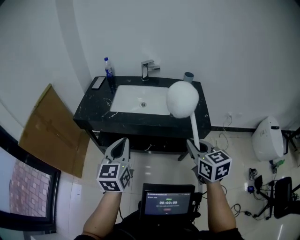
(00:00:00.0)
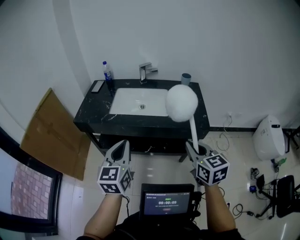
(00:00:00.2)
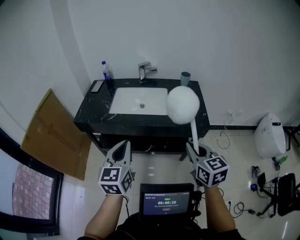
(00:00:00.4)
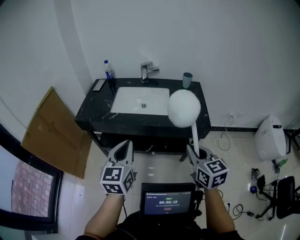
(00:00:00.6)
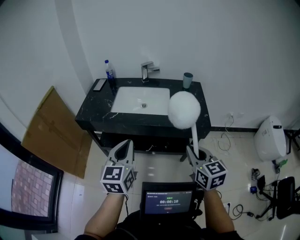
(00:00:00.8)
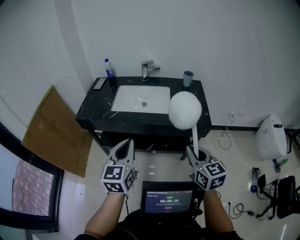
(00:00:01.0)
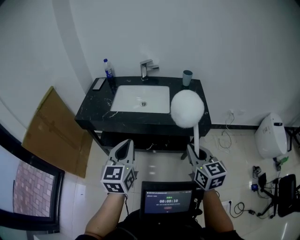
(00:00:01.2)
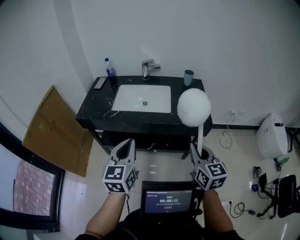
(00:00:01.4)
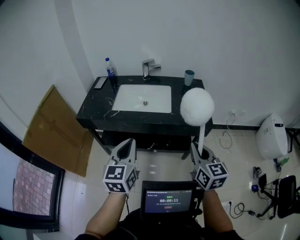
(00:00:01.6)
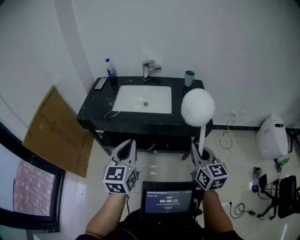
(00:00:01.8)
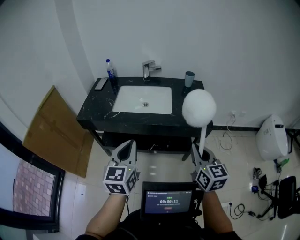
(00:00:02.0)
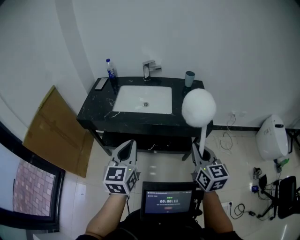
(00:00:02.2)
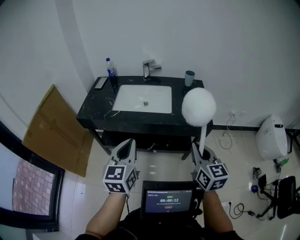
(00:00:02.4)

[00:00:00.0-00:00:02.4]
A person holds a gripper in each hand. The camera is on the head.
00:00:00.0 to 00:00:02.4: The grippers stay close to where they were, moving slightly.

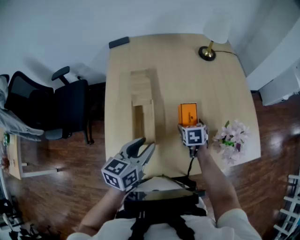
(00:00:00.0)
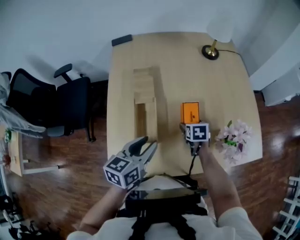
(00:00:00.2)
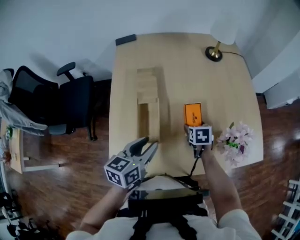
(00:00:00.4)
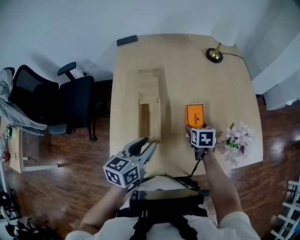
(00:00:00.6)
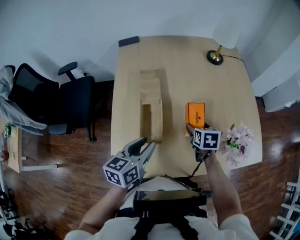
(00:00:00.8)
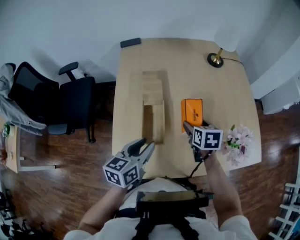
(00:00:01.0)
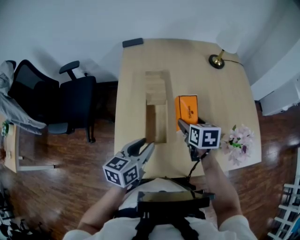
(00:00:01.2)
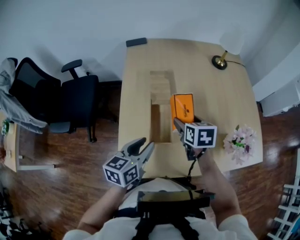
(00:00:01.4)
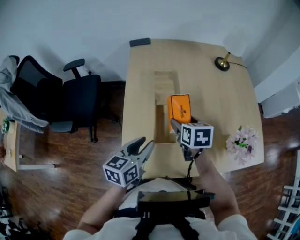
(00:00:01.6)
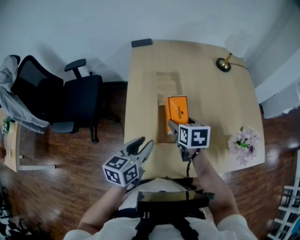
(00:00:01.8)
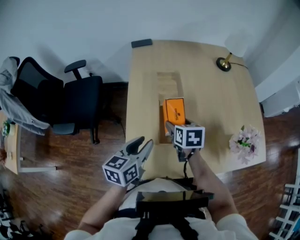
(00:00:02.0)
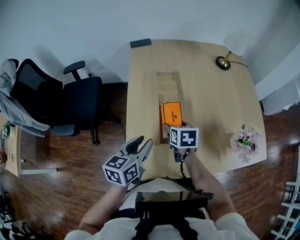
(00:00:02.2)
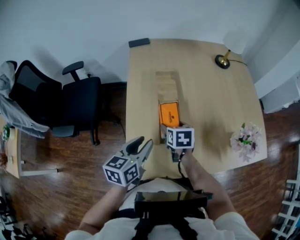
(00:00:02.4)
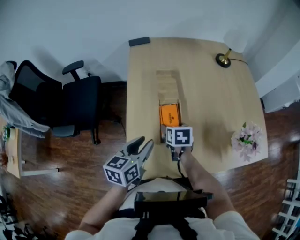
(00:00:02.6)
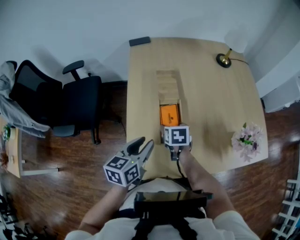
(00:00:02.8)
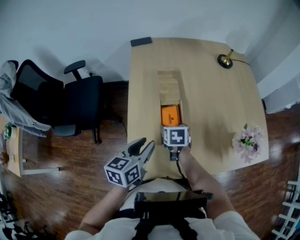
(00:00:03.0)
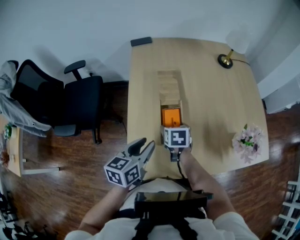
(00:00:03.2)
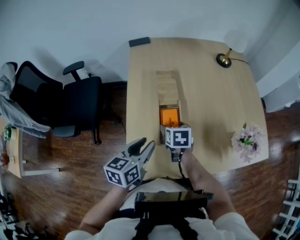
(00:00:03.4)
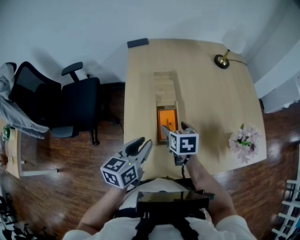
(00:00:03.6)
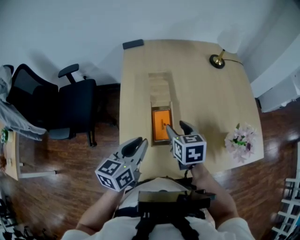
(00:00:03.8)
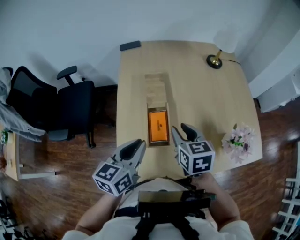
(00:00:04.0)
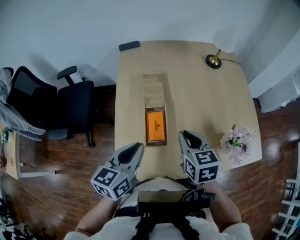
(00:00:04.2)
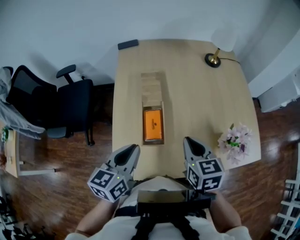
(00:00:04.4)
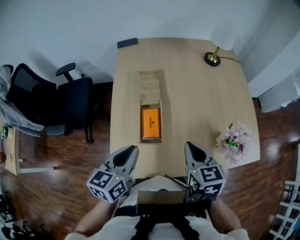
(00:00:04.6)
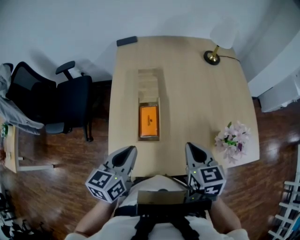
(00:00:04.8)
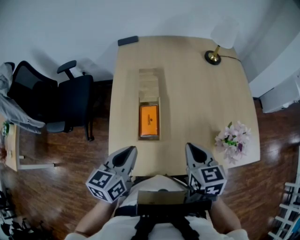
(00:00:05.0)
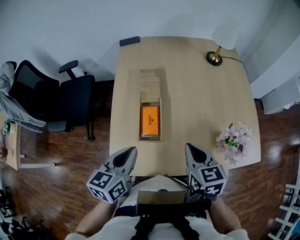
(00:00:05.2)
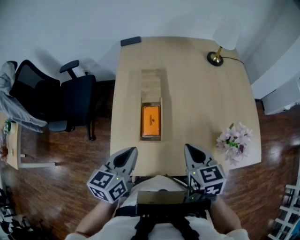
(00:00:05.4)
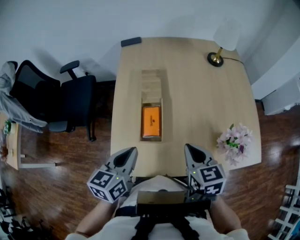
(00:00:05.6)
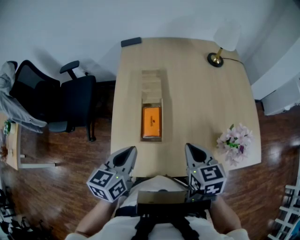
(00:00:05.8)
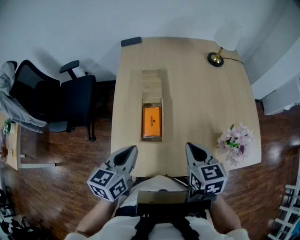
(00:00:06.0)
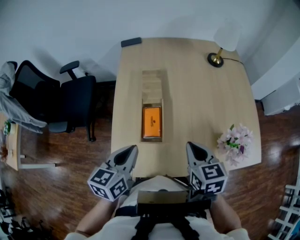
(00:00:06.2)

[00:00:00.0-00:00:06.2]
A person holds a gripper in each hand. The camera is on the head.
00:00:00.0 to 00:00:01.6: The right gripper is displaced to the left and upward by approximately 20 cm, and changes its angle by approximately 20 degrees; the left gripper moves to the left, about 10 cm.
00:00:01.6 to 00:00:03.2: The right gripper shifts approximately 10 cm downward and to the left.
00:00:03.2 to 00:00:04.6: The left gripper is displaced upward and to the right by approximately 10 cm, and closes its fingers; the right gripper shifts approximately 25 cm upward, to the right and backward, rotates approximately 30 degrees, and closes.
00:00:04.6 to 00:00:06.2: The grippers stay close to where they were, moving slightly.

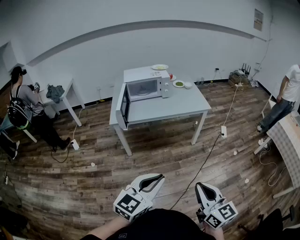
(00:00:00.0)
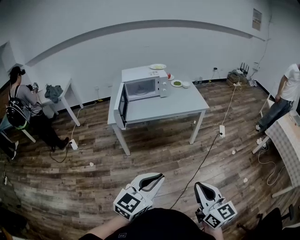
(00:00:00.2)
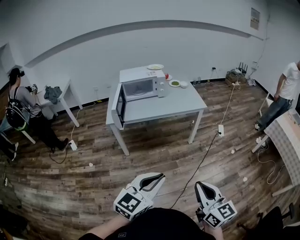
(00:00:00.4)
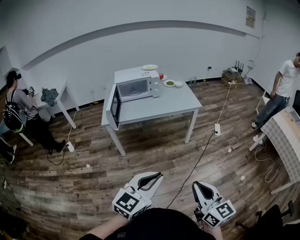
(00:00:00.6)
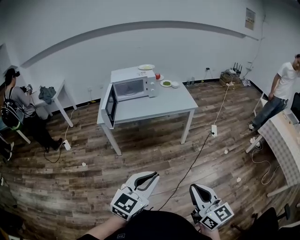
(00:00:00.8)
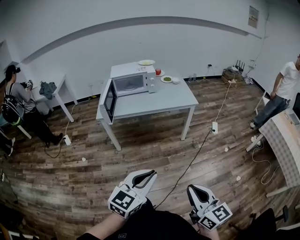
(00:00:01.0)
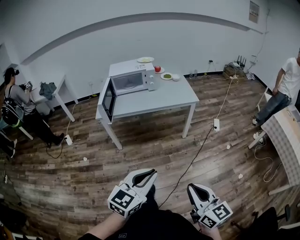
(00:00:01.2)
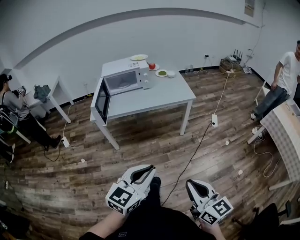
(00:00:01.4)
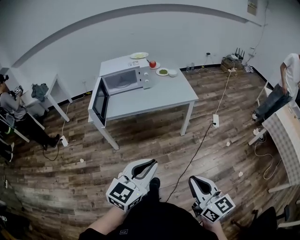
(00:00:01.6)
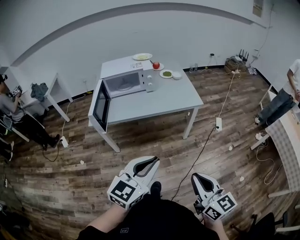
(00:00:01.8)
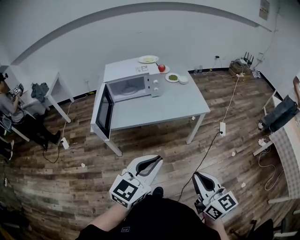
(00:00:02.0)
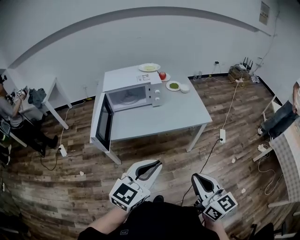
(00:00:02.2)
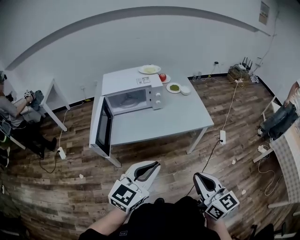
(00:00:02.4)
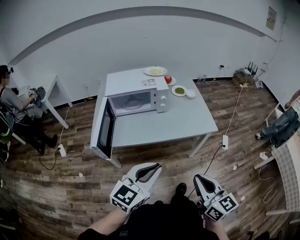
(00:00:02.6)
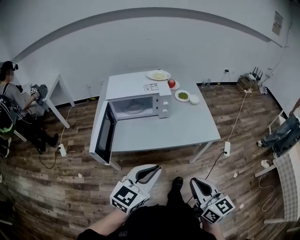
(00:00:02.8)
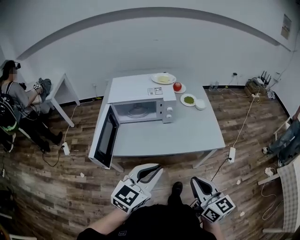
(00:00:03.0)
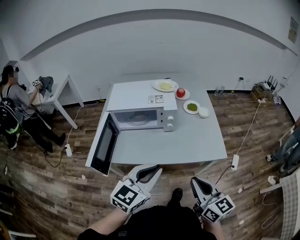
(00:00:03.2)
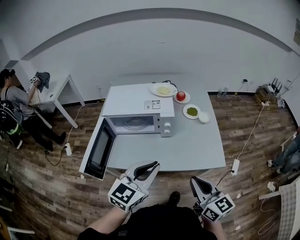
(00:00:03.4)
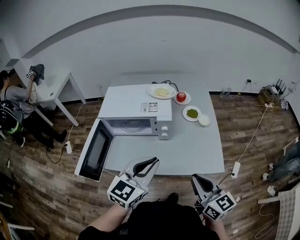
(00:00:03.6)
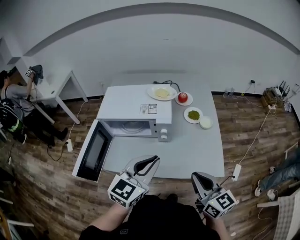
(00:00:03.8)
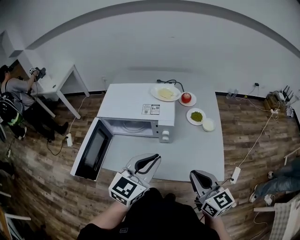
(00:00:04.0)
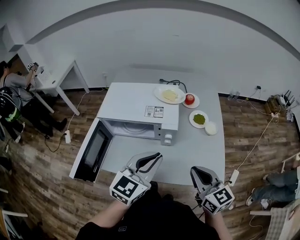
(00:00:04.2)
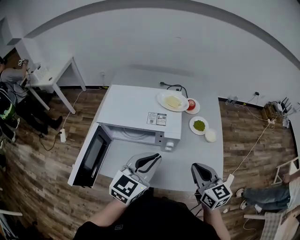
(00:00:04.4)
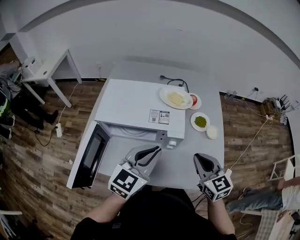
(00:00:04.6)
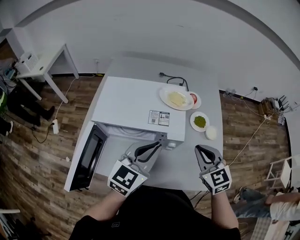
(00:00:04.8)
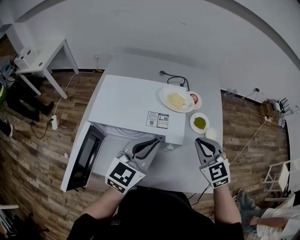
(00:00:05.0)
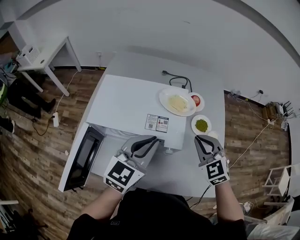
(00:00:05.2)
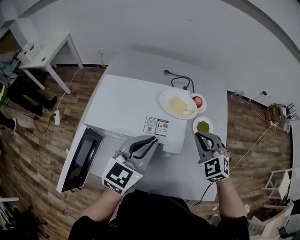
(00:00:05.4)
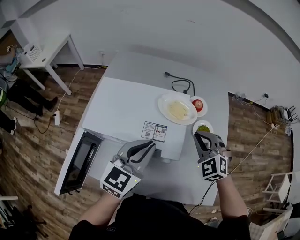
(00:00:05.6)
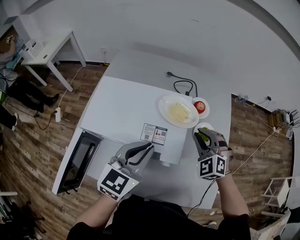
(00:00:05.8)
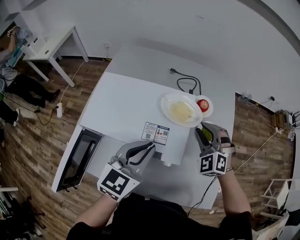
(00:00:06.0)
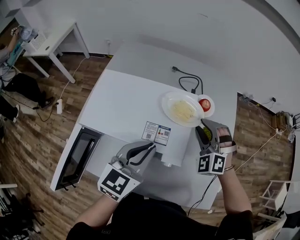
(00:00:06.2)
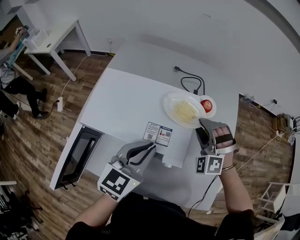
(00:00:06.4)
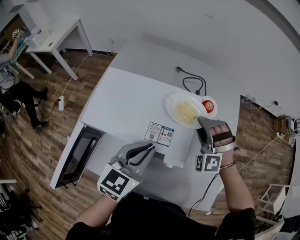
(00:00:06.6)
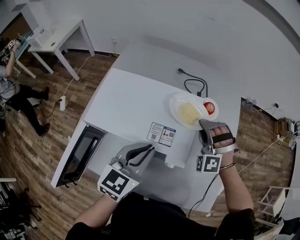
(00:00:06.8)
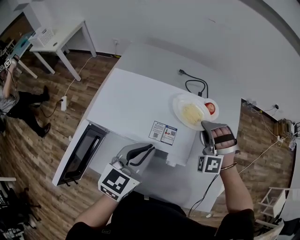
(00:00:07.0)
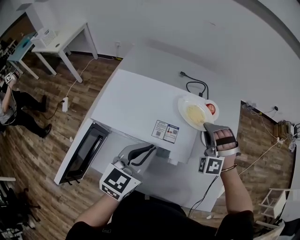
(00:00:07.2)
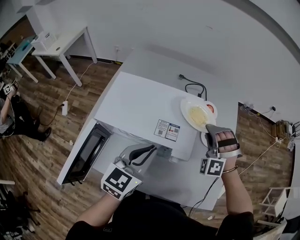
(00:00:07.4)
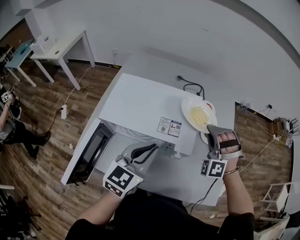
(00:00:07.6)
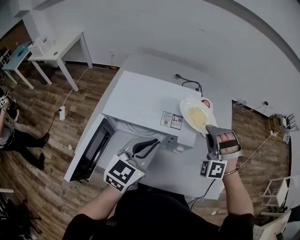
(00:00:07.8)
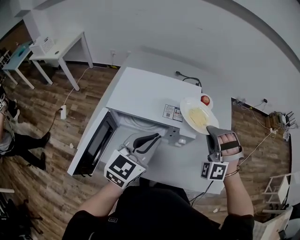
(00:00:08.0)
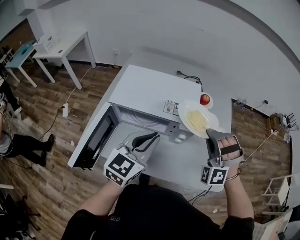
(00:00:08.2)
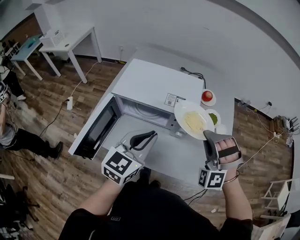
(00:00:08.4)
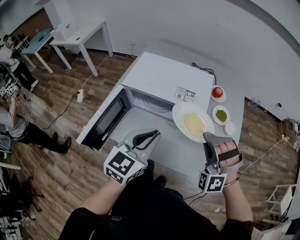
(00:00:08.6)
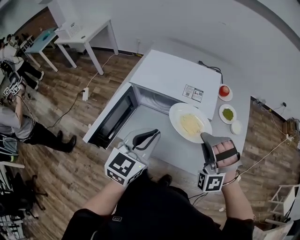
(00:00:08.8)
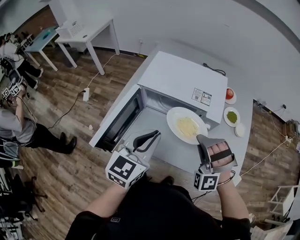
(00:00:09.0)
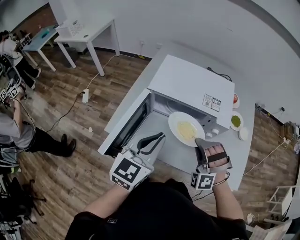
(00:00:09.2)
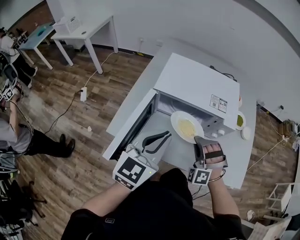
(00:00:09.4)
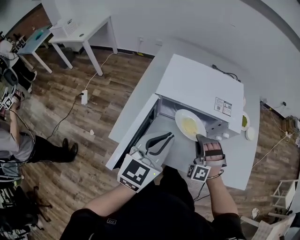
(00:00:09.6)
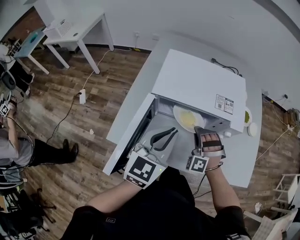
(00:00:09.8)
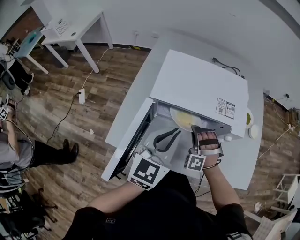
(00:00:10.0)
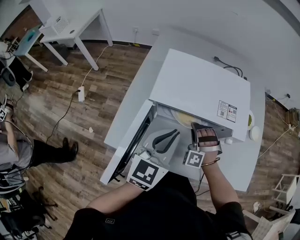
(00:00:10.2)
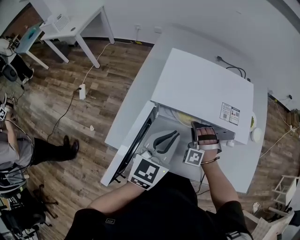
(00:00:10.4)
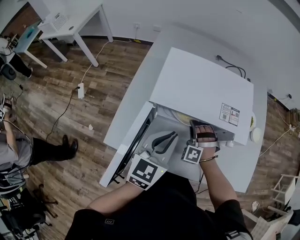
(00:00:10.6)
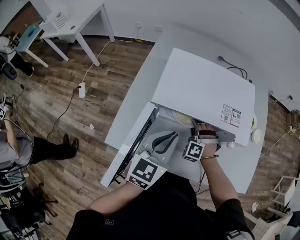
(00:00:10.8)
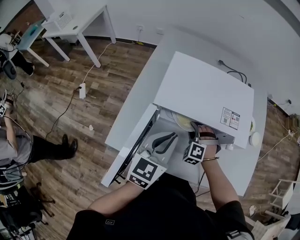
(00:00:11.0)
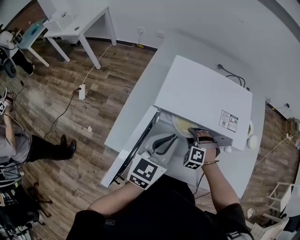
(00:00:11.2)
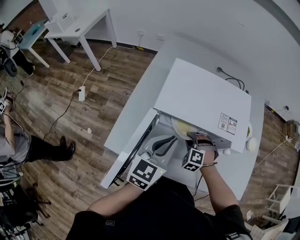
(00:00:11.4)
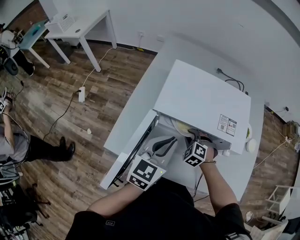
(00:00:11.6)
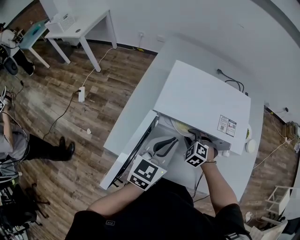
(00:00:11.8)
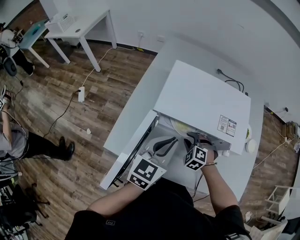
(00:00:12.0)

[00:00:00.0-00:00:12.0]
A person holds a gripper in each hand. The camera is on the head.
00:00:00.0 to 00:00:01.6: The two grippers go roughly 15 cm forward and to the right.
00:00:01.6 to 00:00:03.0: The two grippers go roughly 35 cm forward.
00:00:03.0 to 00:00:04.4: Both grippers move forward, roughly 30 cm.
00:00:04.4 to 00:00:06.0: The left gripper moves forward, approximately 15 cm. Meanwhile the right gripper goes approximately 30 cm forward, twists some 70 degrees counterclockwise, seen from behind, and opens its fingers.
00:00:06.0 to 00:00:07.6: The right gripper travels backward and upward by some 5 cm, and swivels some 30 degrees; the left gripper goes some 5 cm backward.
00:00:07.6 to 00:00:09.0: The right gripper travels backward and to the left by some 25 cm, while the left gripper goes roughly 15 cm backward and to the left.
00:00:09.0 to 00:00:10.4: The left gripper goes roughly 15 cm forward, downward and to the left; the right gripper travels downward, forward and to the left by approximately 30 cm.
00:00:10.4 to 00:00:12.0: The right gripper swivels roughly 40 degrees.

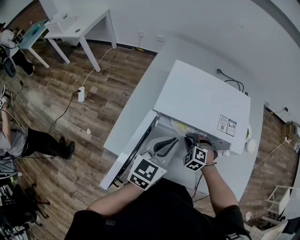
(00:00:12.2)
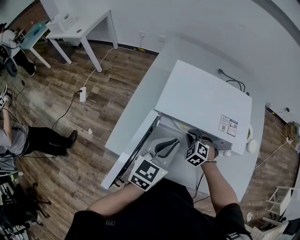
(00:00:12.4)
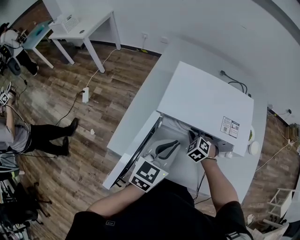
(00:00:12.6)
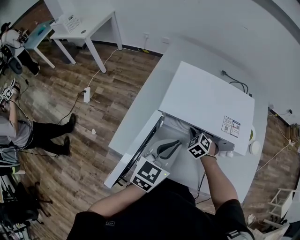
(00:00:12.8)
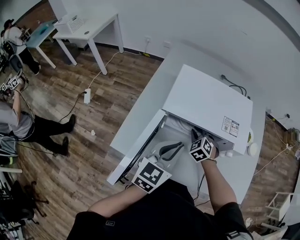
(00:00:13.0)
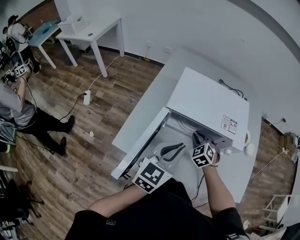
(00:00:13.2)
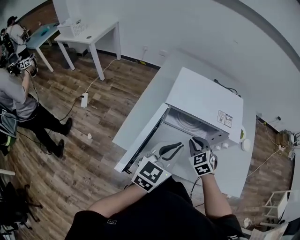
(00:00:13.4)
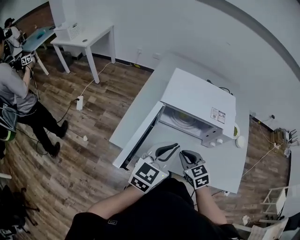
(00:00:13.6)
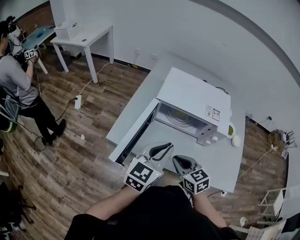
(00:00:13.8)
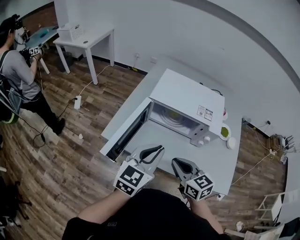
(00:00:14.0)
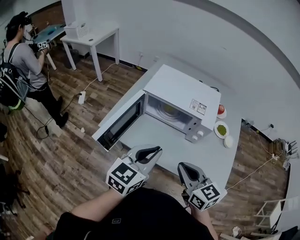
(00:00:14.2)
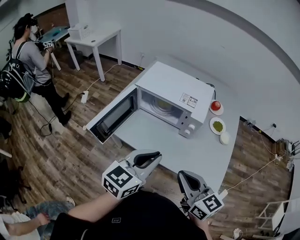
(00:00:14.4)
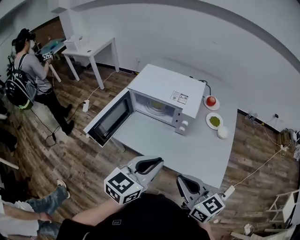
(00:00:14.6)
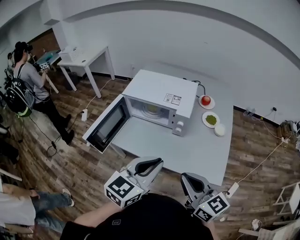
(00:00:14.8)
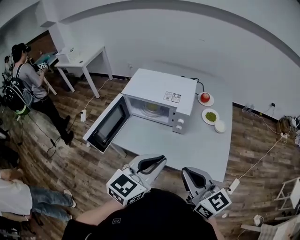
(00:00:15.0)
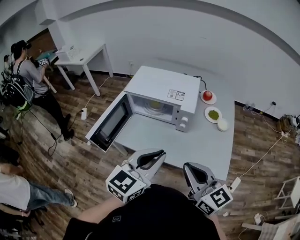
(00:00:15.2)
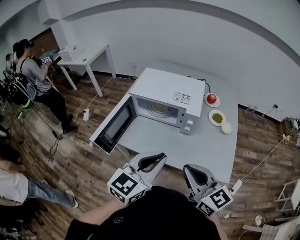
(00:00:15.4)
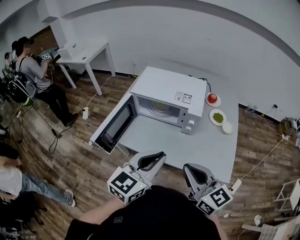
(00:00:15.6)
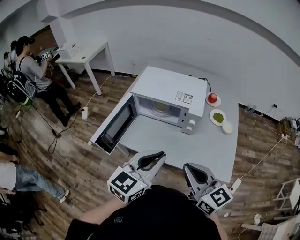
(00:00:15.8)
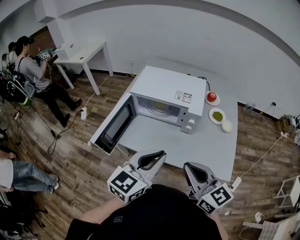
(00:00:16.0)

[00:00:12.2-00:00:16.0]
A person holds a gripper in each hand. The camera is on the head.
00:00:12.2 to 00:00:13.4: The right gripper travels upward and backward by about 10 cm, and rotates about 30 degrees; the left gripper heads backward and upward, covering roughly 10 cm.
00:00:13.4 to 00:00:14.8: The right gripper heads backward, to the right and upward, covering roughly 40 cm, and points its fingers about 40 degrees further upward, while the left gripper moves backward and to the right, roughly 30 cm.
00:00:14.8 to 00:00:16.0: Both grippers travel together to the left, approximately 5 cm.
